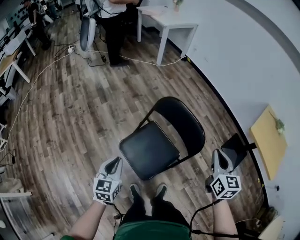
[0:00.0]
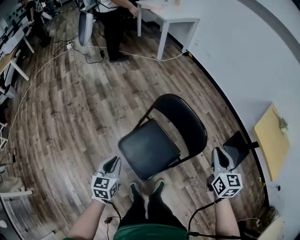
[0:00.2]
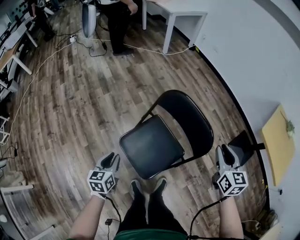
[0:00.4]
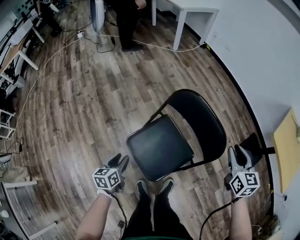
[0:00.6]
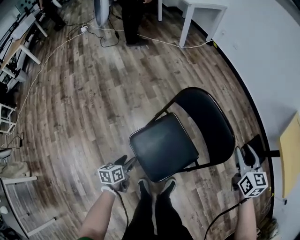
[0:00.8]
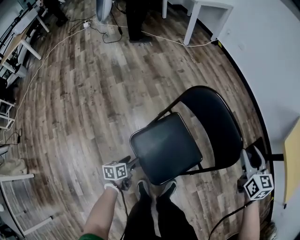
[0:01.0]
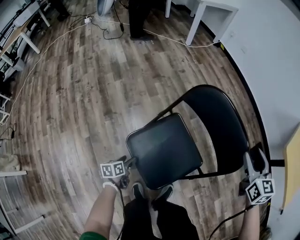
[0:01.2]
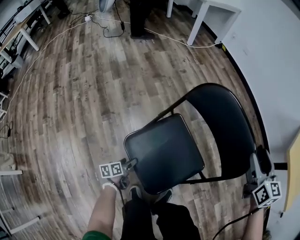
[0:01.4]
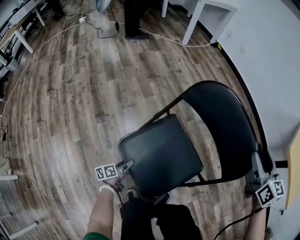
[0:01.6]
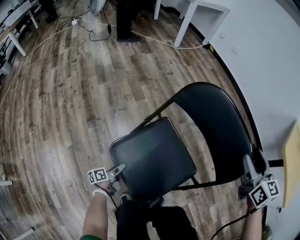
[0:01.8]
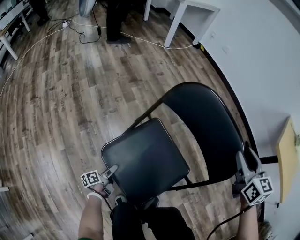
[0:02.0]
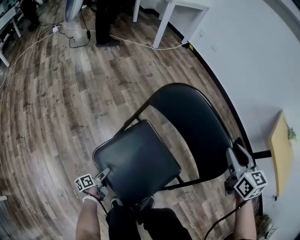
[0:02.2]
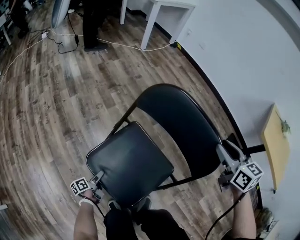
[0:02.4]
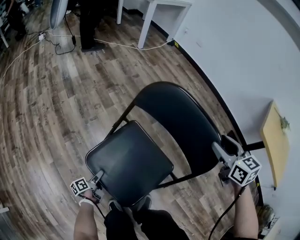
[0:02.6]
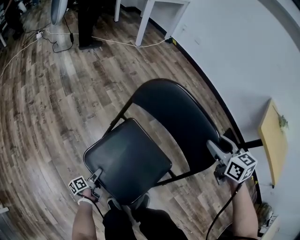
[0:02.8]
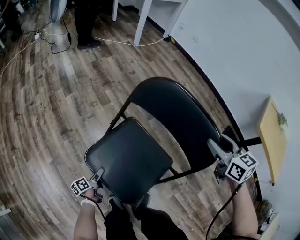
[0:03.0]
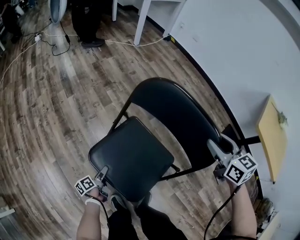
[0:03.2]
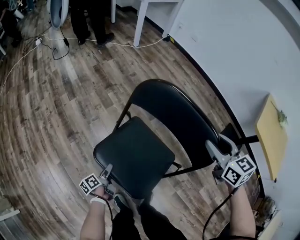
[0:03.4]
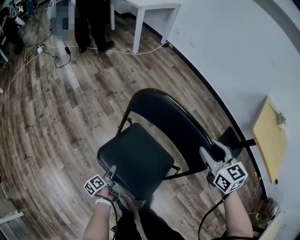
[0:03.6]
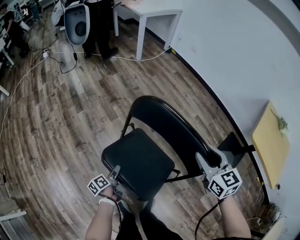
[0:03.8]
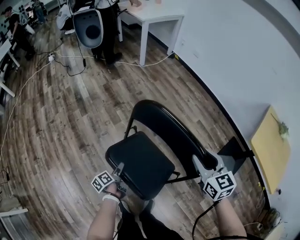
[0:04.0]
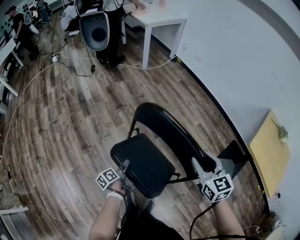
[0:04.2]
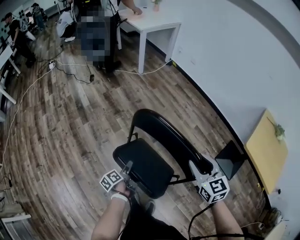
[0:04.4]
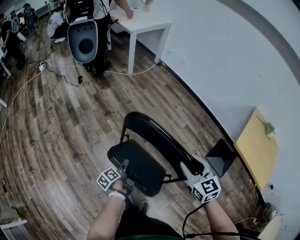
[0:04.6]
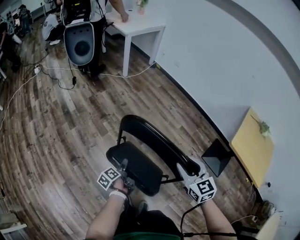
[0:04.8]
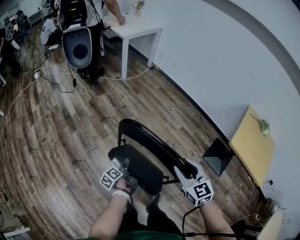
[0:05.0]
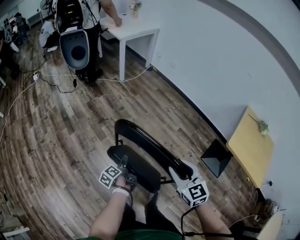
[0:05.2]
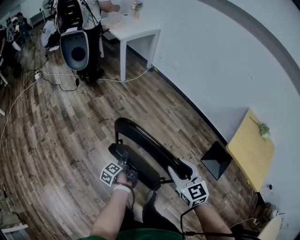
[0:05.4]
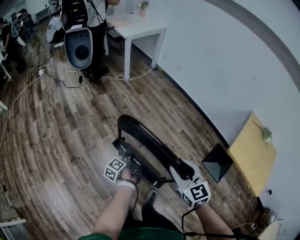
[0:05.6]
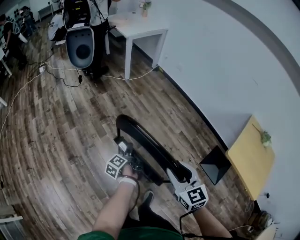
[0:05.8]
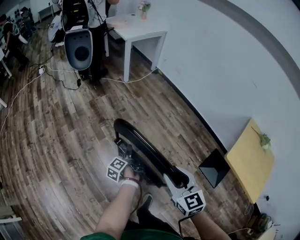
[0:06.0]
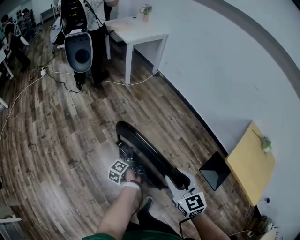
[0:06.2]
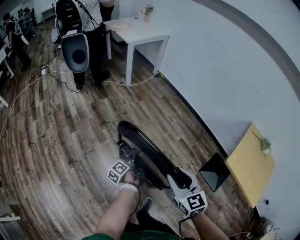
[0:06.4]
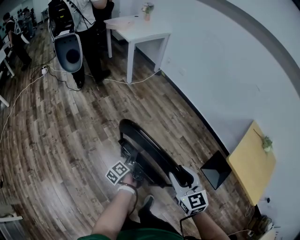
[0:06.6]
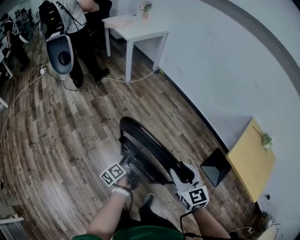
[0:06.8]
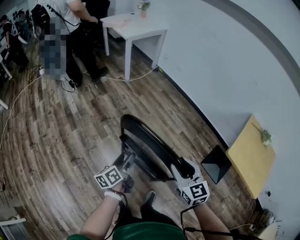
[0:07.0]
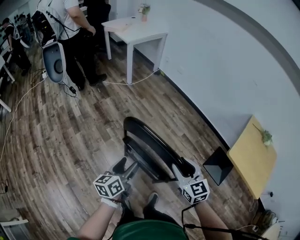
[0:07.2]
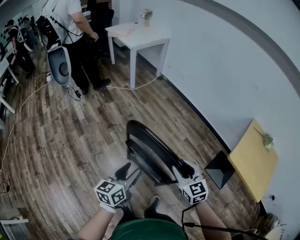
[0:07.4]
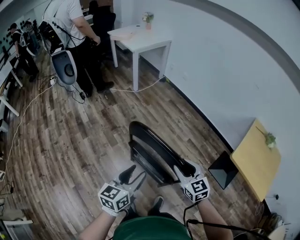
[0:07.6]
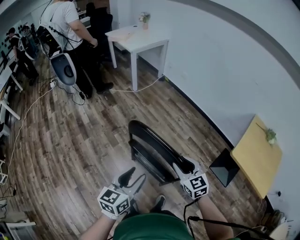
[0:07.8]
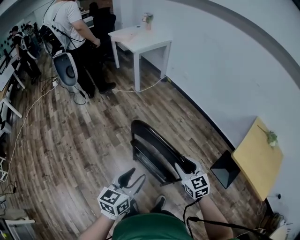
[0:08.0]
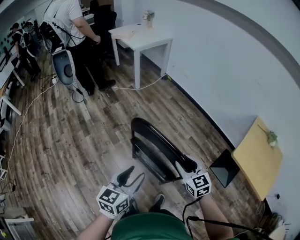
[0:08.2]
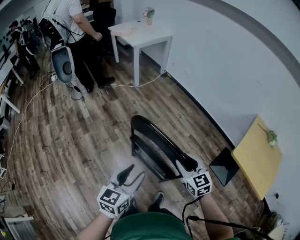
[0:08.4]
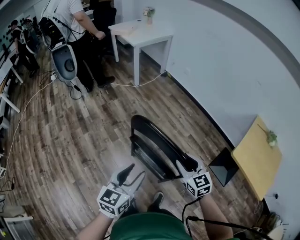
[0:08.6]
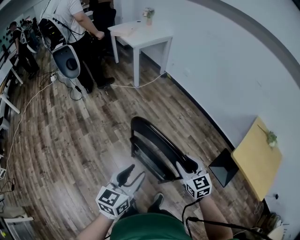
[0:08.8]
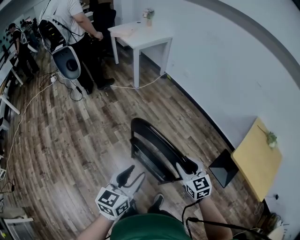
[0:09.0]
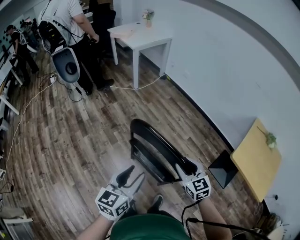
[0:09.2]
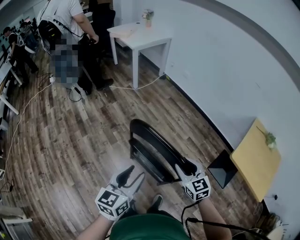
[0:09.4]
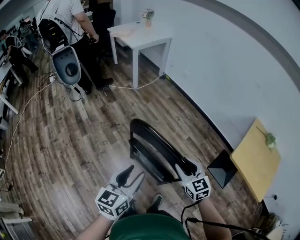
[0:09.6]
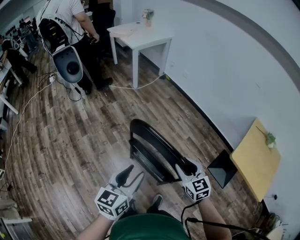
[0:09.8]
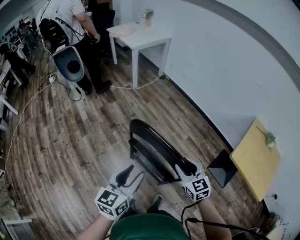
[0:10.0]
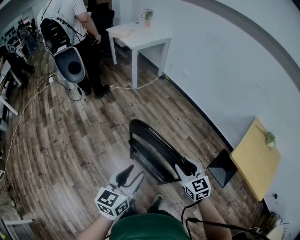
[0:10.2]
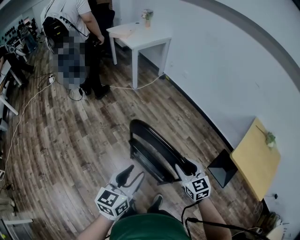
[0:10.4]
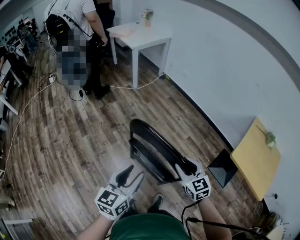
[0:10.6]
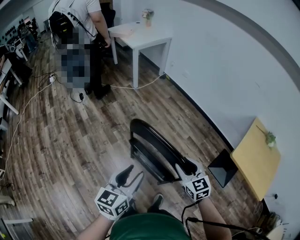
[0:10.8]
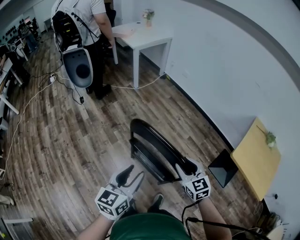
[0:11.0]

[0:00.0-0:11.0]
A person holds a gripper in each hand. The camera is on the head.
0:00.0 to 0:01.6: The right gripper is displaced downward and forward by approximately 25 cm, and opens its fingers. Meanwhile the left gripper heads downward, covering about 50 cm, twists approximately 60 degrees counterclockwise, seen from behind, and opens up.
0:01.6 to 0:03.2: The left gripper is displaced upward by approximately 5 cm.
0:03.2 to 0:04.8: The left gripper travels upward, forward and to the right by about 35 cm, while the right gripper heads upward, covering approximately 15 cm.
0:04.8 to 0:06.2: The right gripper moves roughly 5 cm. The left gripper travels to the right, forward and upward by roughly 20 cm, and swivels approximately 20 degrees.
0:06.2 to 0:07.8: The left gripper moves upward and backward, about 30 cm, twists roughly 70 degrees clockwise, seen from behind, and closes its fingers.
0:07.8 to 0:11.0: The grippers move only a little.

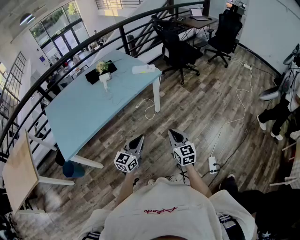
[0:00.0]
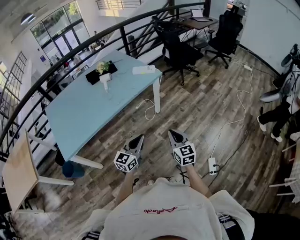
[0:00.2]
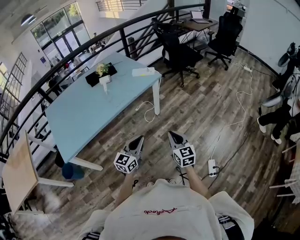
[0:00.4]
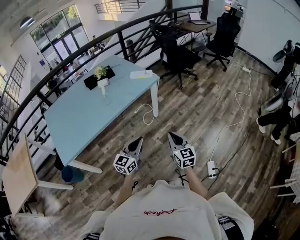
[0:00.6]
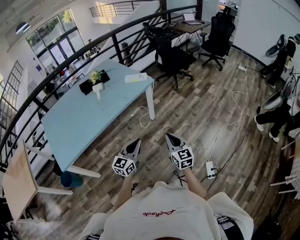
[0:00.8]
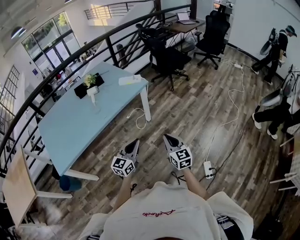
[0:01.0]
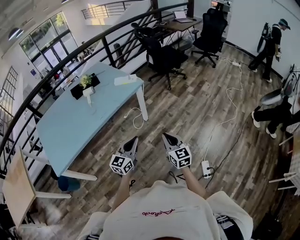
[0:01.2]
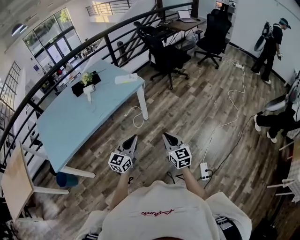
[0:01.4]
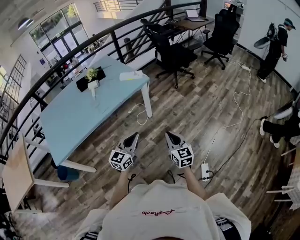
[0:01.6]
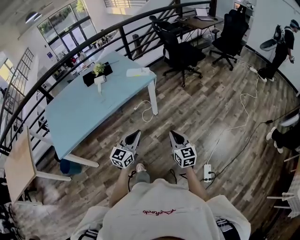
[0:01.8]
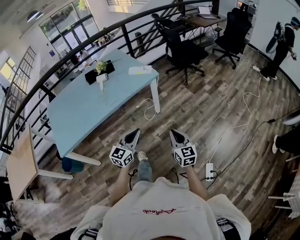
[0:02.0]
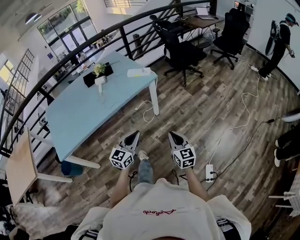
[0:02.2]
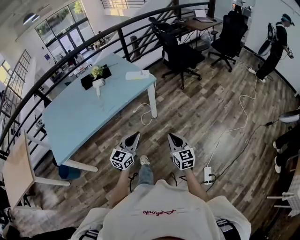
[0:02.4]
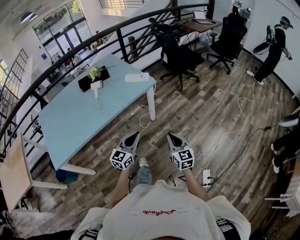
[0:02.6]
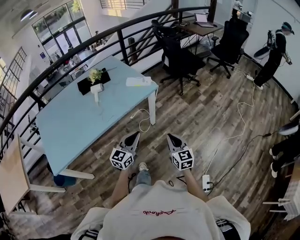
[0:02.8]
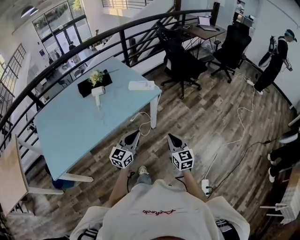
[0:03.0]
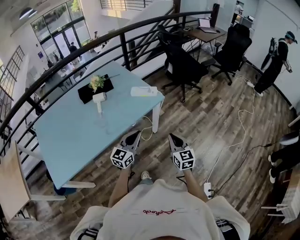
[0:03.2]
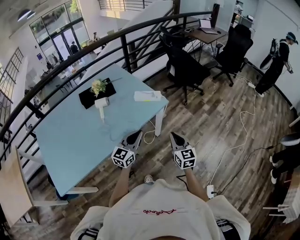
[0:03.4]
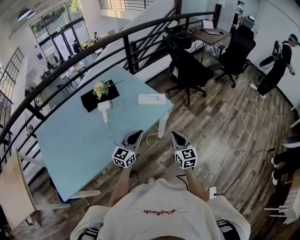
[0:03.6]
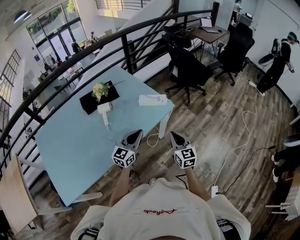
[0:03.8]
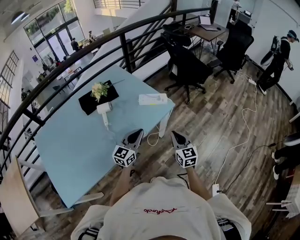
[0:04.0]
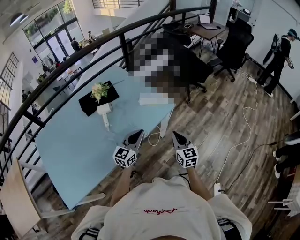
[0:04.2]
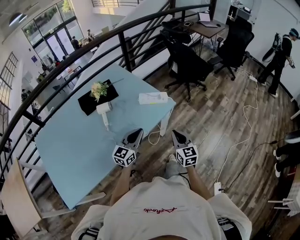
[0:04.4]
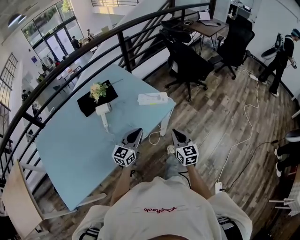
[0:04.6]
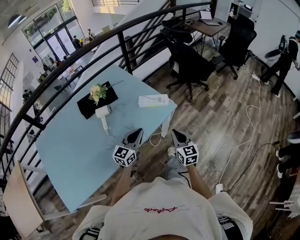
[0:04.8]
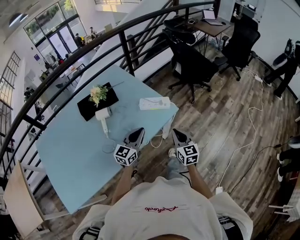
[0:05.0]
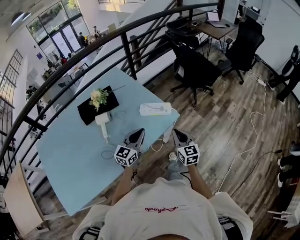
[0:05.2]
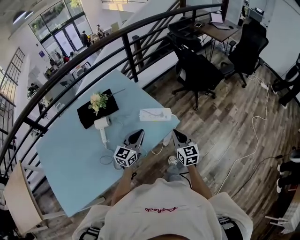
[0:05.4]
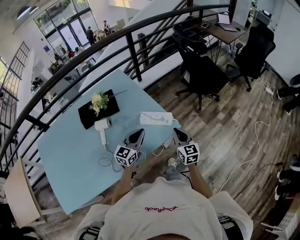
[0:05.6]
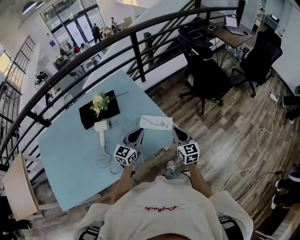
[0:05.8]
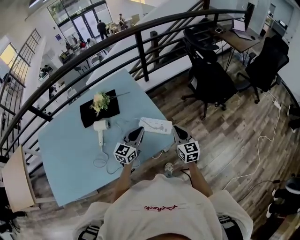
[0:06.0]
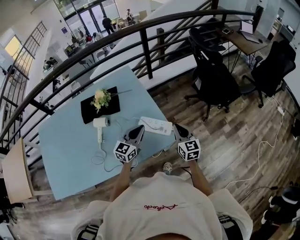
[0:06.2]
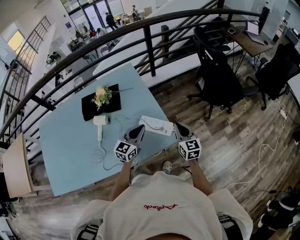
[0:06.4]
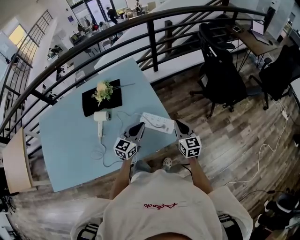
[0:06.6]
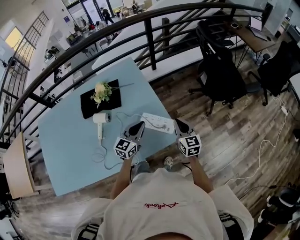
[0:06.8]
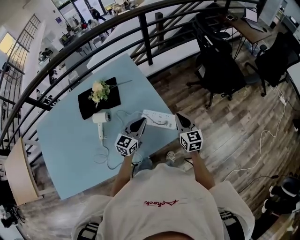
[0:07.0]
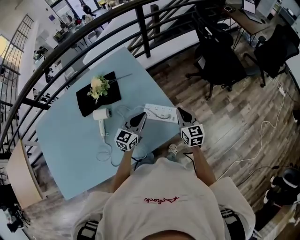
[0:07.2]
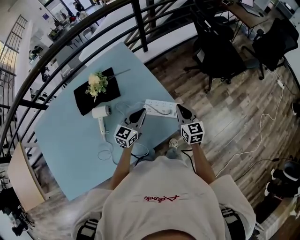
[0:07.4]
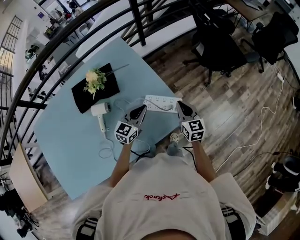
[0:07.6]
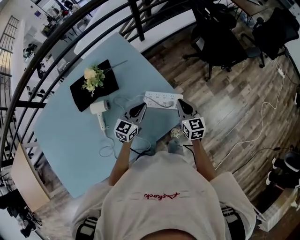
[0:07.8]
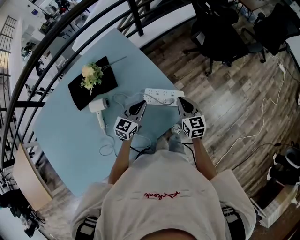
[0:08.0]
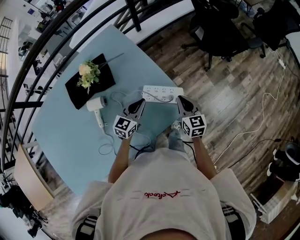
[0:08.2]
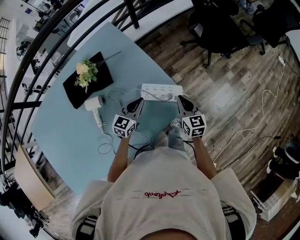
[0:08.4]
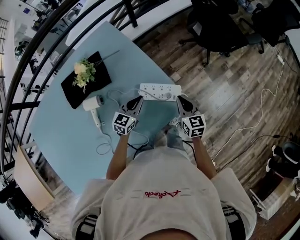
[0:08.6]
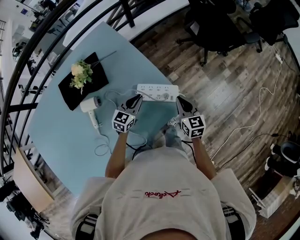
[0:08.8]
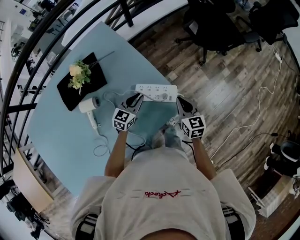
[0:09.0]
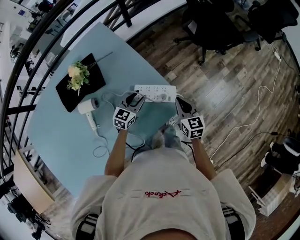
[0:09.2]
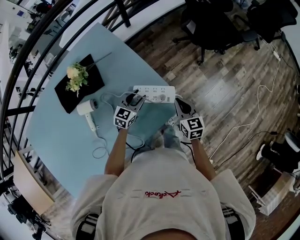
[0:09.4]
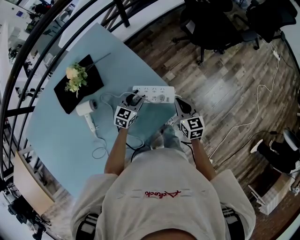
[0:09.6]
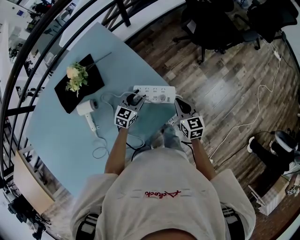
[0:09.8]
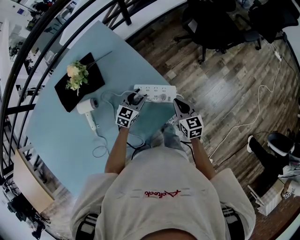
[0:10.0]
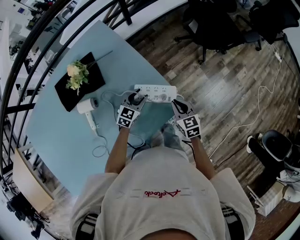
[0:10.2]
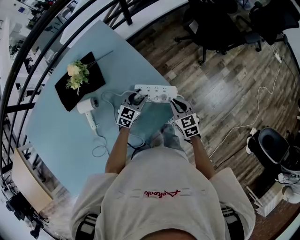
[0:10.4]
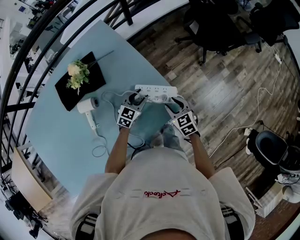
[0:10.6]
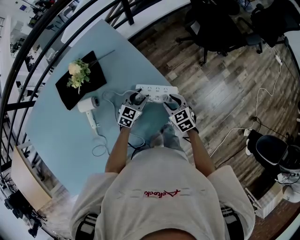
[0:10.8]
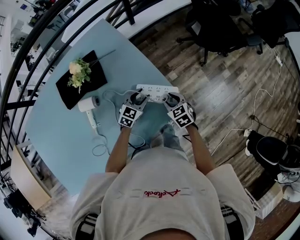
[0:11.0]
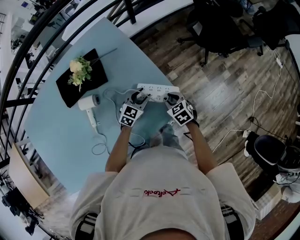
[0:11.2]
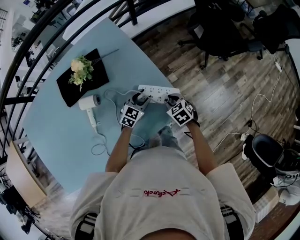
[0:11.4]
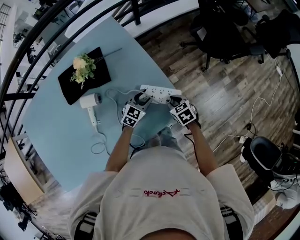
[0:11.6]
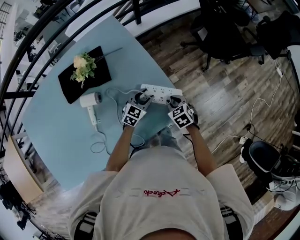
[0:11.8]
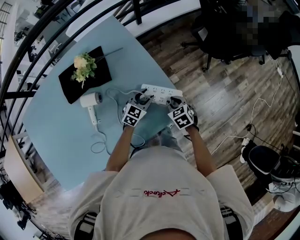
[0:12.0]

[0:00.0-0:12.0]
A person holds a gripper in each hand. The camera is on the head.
0:00.0 to 0:01.6: The grippers both shift to the right and forward by about 15 cm.
0:01.6 to 0:03.0: The two grippers go about 20 cm forward and to the left.
0:03.0 to 0:04.4: Both grippers travel together forward and to the left, about 20 cm.
0:04.4 to 0:06.0: Both grippers move forward, roughly 30 cm.
0:06.0 to 0:07.6: The right gripper travels forward and downward by some 10 cm; the left gripper heads downward and forward, covering about 10 cm.
0:07.6 to 0:09.0: The left gripper goes some 10 cm downward; the right gripper moves downward, some 5 cm.
0:09.0 to 0:10.4: The left gripper opens up.
0:10.4 to 0:12.0: The right gripper ends up some 5 cm from where it was, swivels roughly 20 degrees, and opens up.

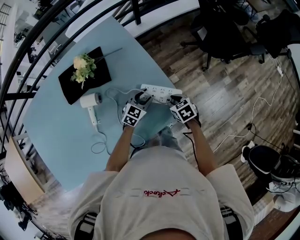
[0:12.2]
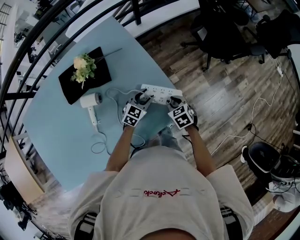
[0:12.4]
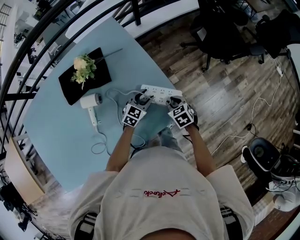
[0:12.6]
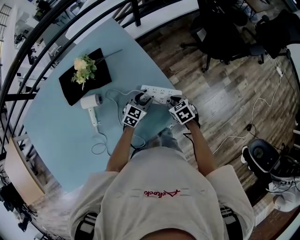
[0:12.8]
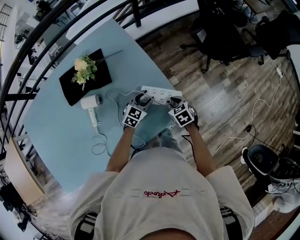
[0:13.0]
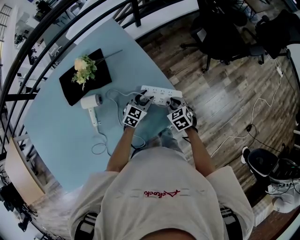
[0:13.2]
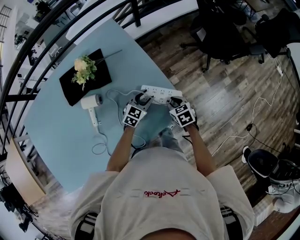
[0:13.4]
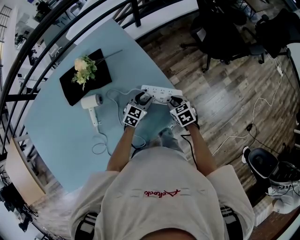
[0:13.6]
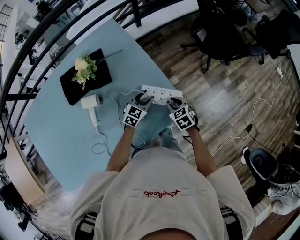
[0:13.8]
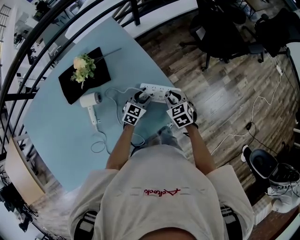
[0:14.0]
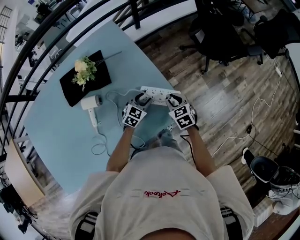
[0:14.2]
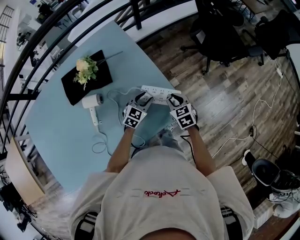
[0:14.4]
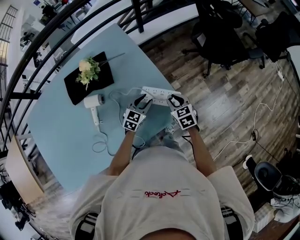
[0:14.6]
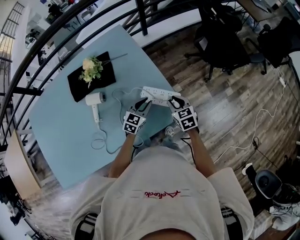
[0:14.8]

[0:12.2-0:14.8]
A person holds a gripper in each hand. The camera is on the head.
0:12.2 to 0:13.4: The grippers move only a little.
0:13.4 to 0:14.8: The left gripper moves roughly 5 cm; the right gripper heads upward, covering about 5 cm.
